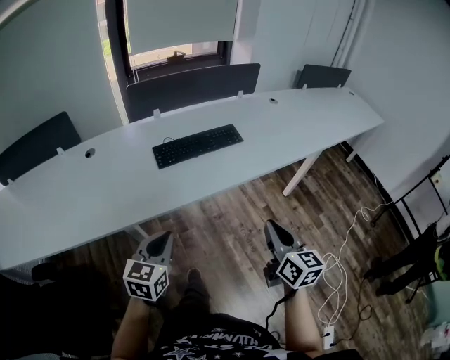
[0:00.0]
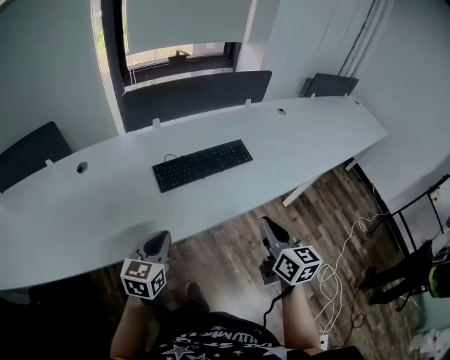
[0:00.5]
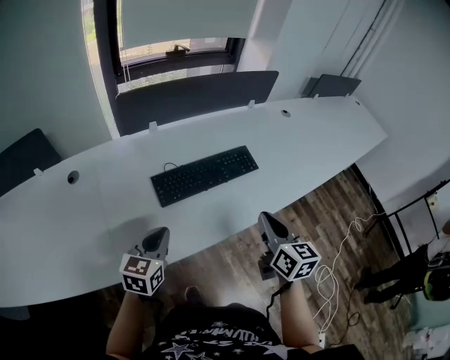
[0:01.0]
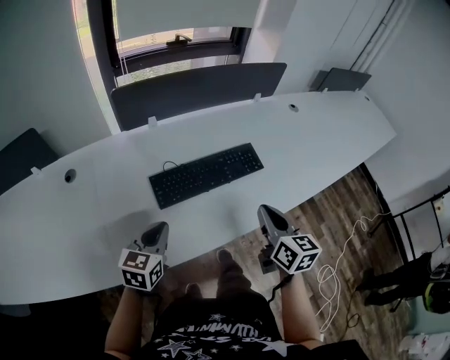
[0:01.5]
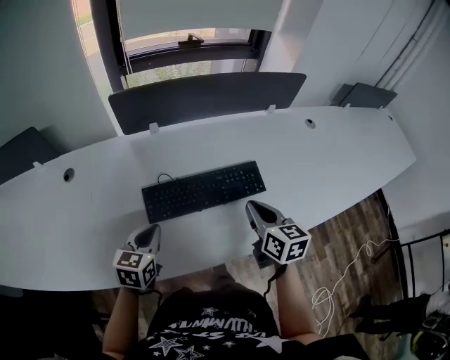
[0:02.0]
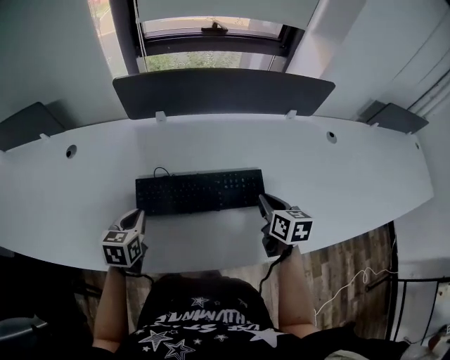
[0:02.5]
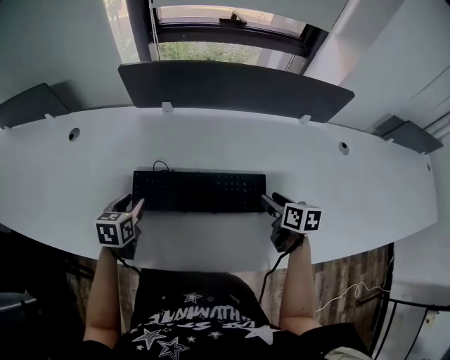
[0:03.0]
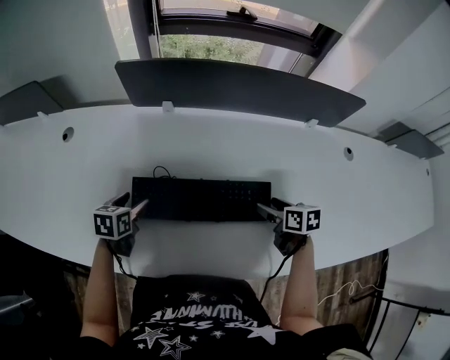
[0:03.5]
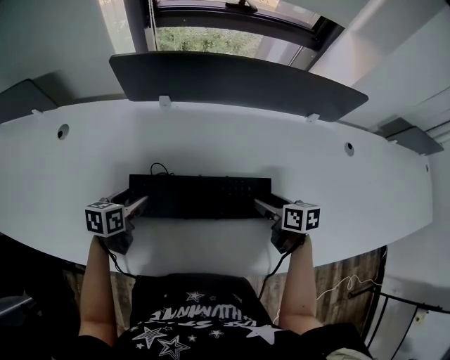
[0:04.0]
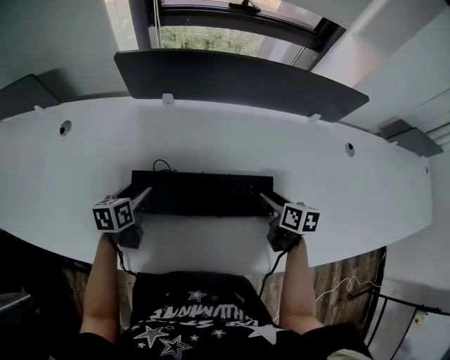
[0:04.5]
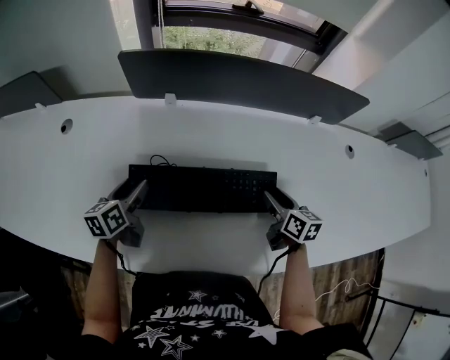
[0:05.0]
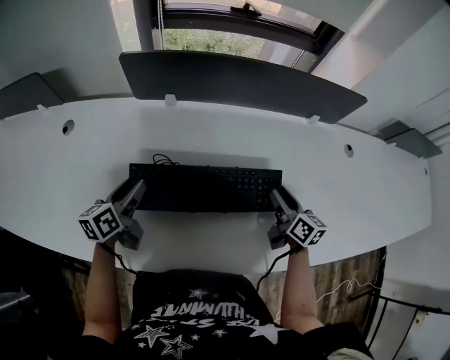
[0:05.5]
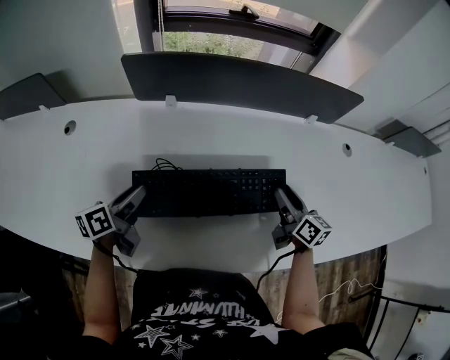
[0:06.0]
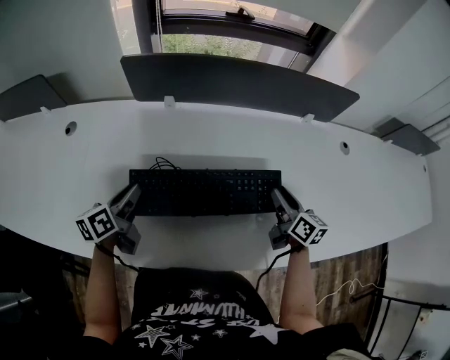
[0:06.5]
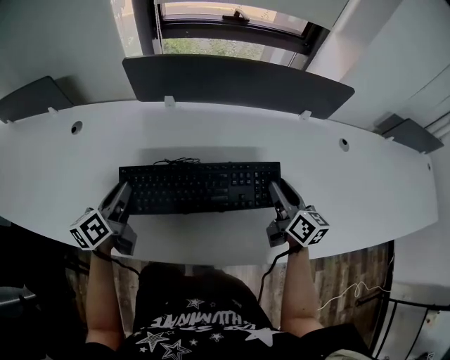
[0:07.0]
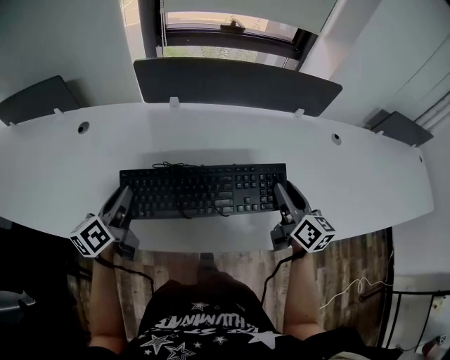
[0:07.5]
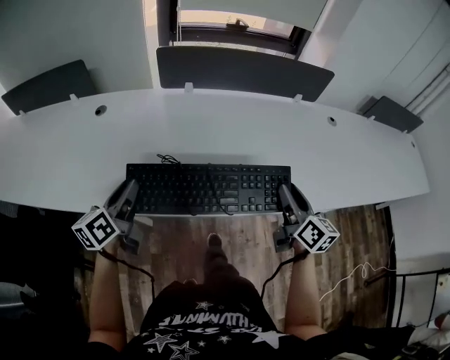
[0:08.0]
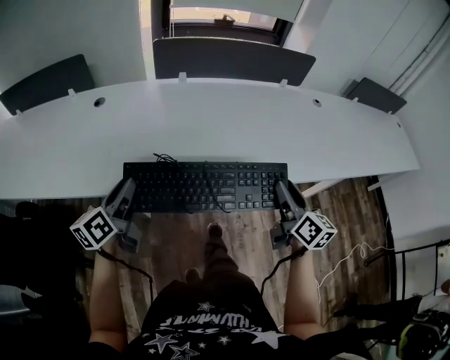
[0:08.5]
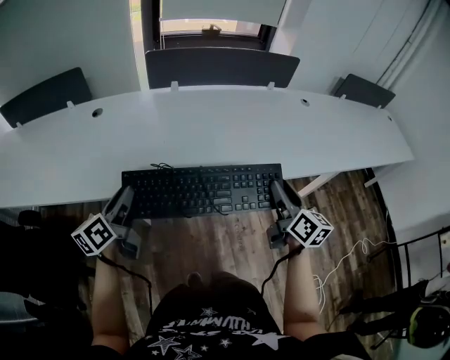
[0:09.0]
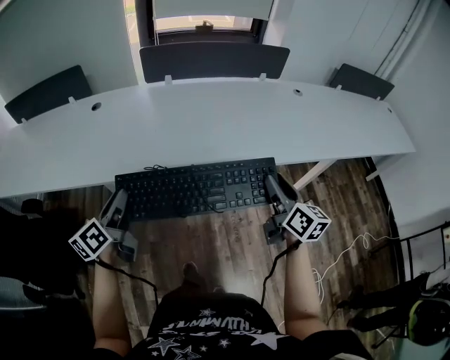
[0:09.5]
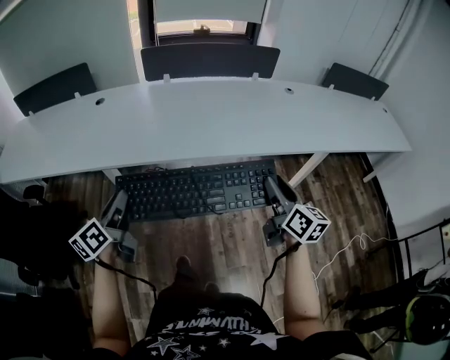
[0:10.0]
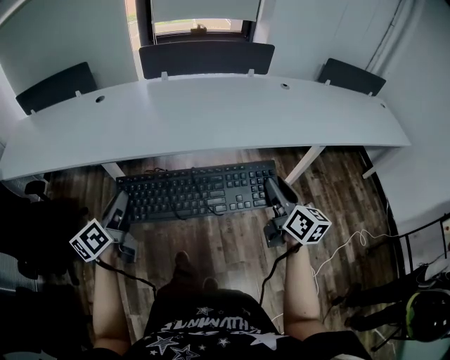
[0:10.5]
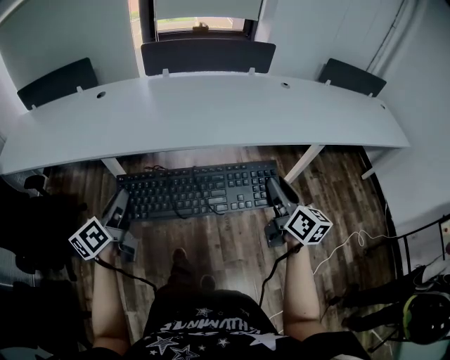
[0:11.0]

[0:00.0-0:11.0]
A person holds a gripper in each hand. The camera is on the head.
0:00.0 to 0:02.0: Both grippers move forward, roughly 35 cm. The right gripper swivels about 20 degrees.
0:02.0 to 0:03.5: The left gripper moves forward and downward, some 15 cm, changes its angle by about 30 degrees, and opens its fingers. The right gripper travels downward, forward and to the right by about 20 cm, turns by some 40 degrees, and opens up.
0:03.5 to 0:05.5: The two grippers go approximately 5 cm upward. The right gripper changes its angle by some 30 degrees, and closes its fingers, while the left gripper changes its angle by approximately 30 degrees.
0:05.5 to 0:07.5: The left gripper is displaced backward and upward by about 15 cm, and closes up. The right gripper travels upward and backward by about 15 cm.
0:07.5 to 0:09.0: The two grippers go approximately 20 cm backward.
0:09.0 to 0:11.0: Neither gripper changes place.

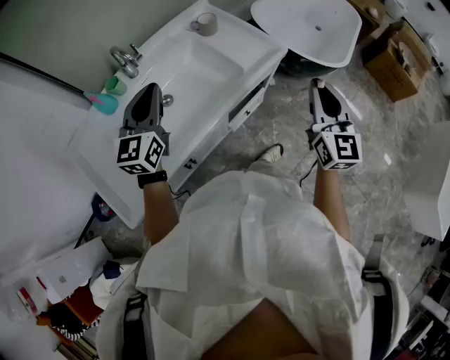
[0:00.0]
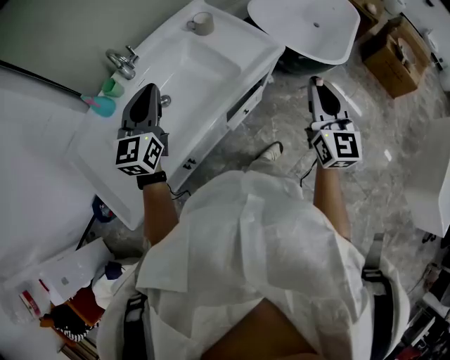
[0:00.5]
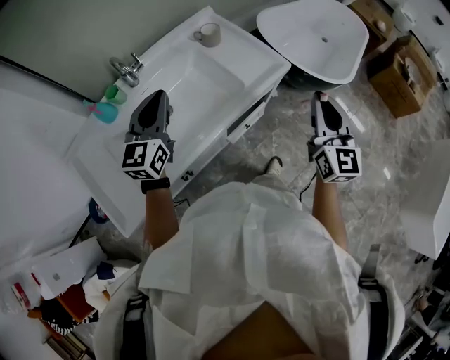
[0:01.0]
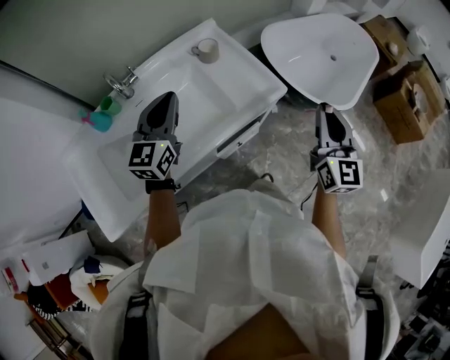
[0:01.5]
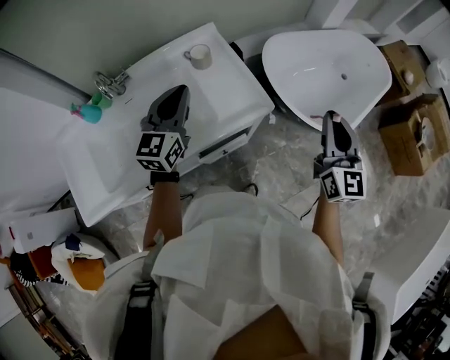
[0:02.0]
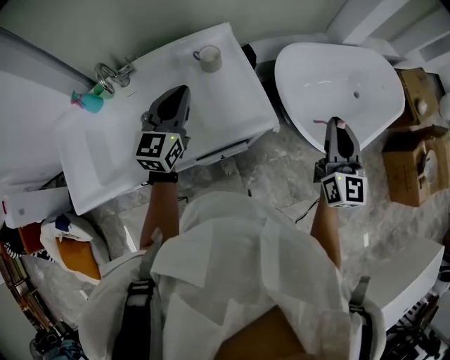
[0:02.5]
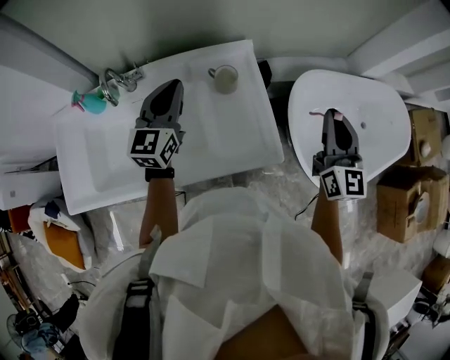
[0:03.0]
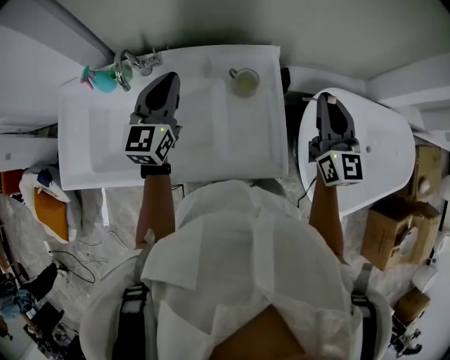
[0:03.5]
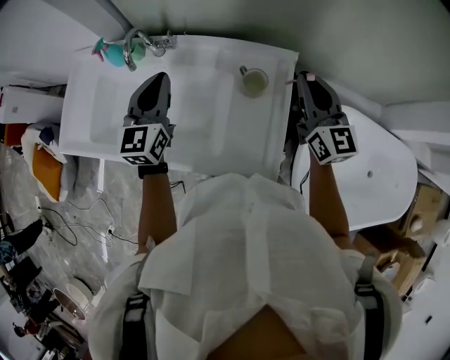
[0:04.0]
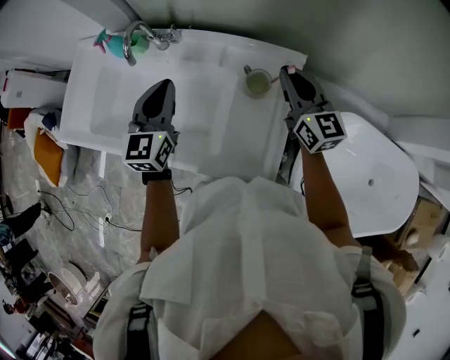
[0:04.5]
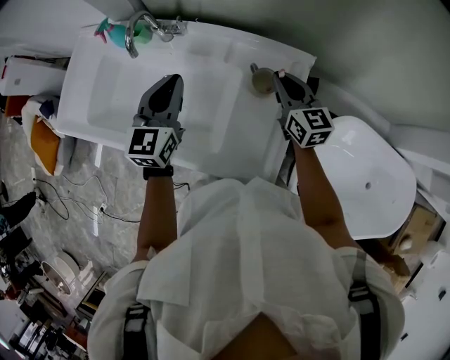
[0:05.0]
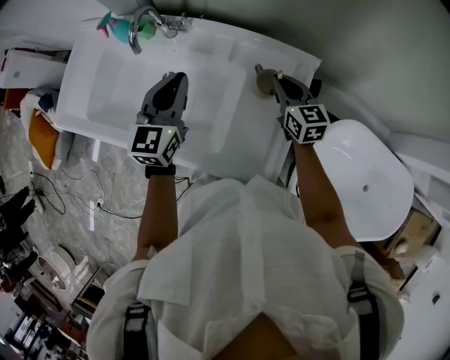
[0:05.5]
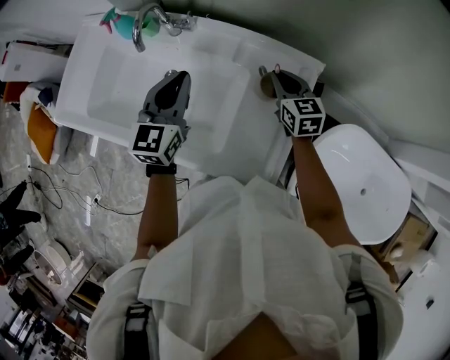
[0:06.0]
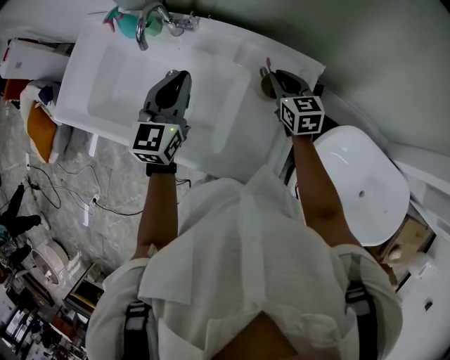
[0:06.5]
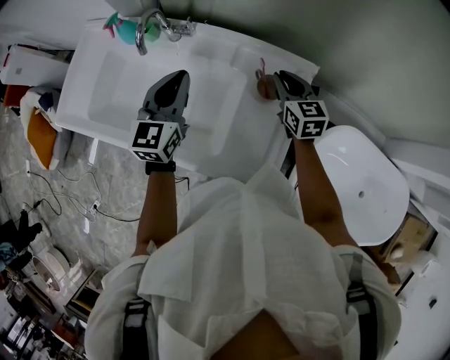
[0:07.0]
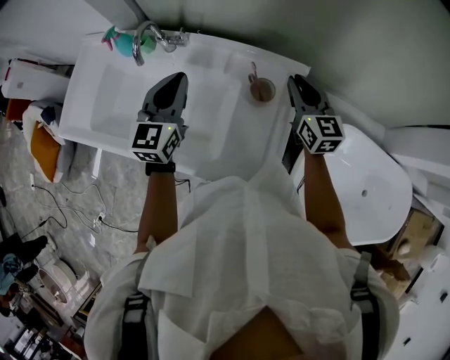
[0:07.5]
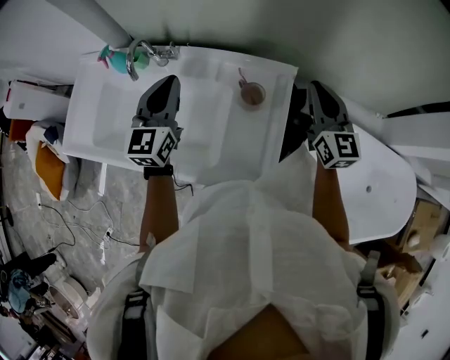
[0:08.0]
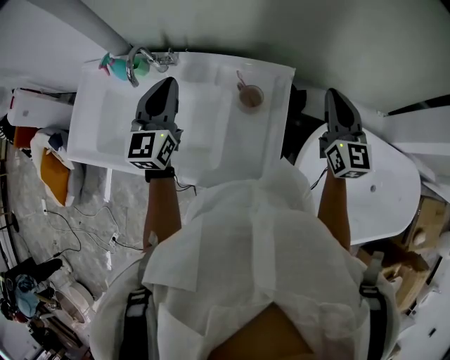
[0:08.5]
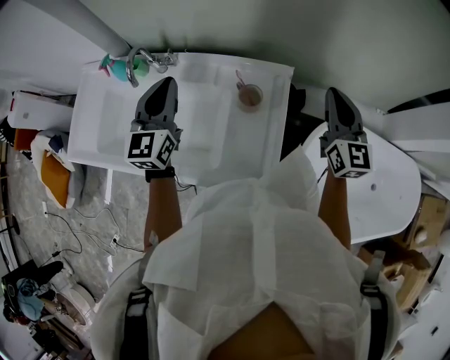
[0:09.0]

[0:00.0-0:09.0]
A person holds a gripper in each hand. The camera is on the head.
0:00.0 to 0:02.0: The right gripper heads forward and to the right, covering some 30 cm. The left gripper is displaced to the right and forward by roughly 25 cm.
0:02.0 to 0:04.5: The left gripper ends up approximately 20 cm from where it was, and rotates some 50 degrees, while the right gripper changes place by about 50 cm, and swivels some 60 degrees.
0:04.5 to 0:07.0: The right gripper travels downward by roughly 10 cm, and turns by approximately 20 degrees.
0:07.0 to 0:09.0: The left gripper moves upward, approximately 10 cm. Meanwhile the right gripper heads upward, to the right and backward, covering about 25 cm, and turns by about 30 degrees.

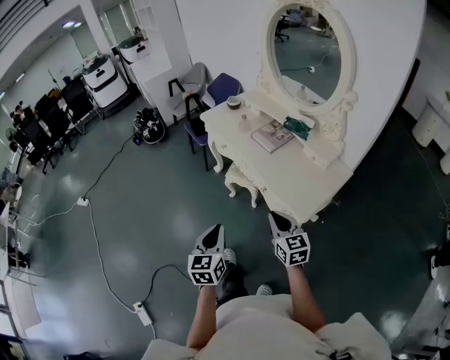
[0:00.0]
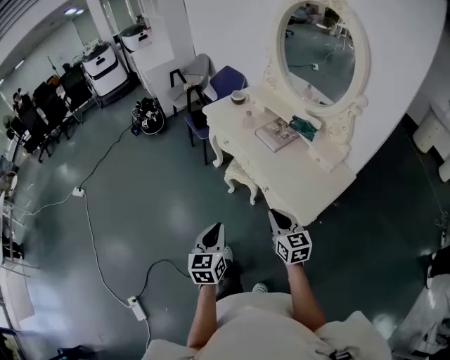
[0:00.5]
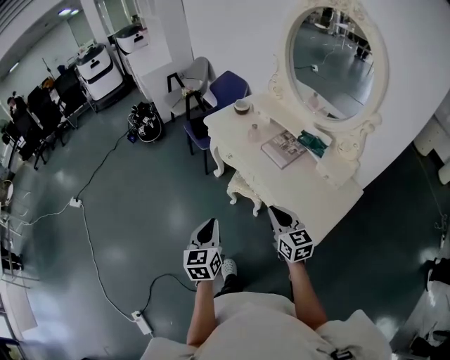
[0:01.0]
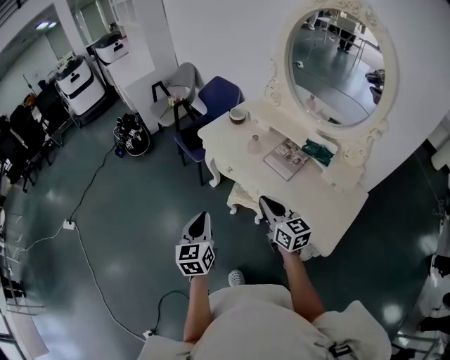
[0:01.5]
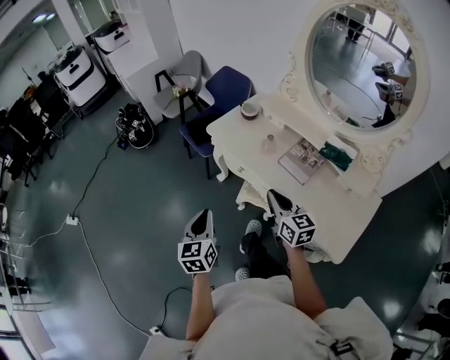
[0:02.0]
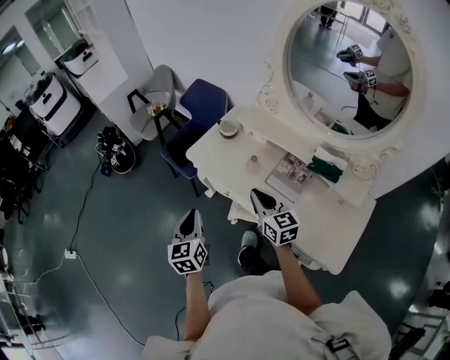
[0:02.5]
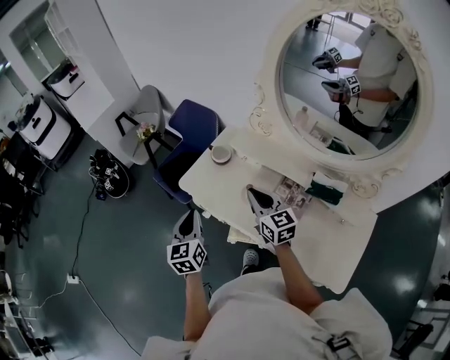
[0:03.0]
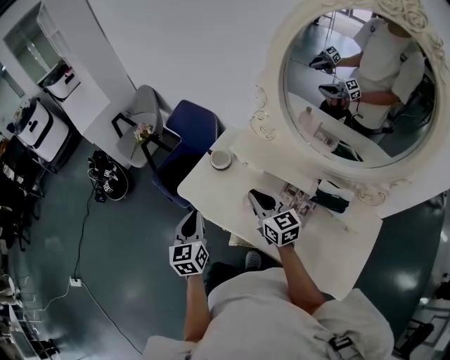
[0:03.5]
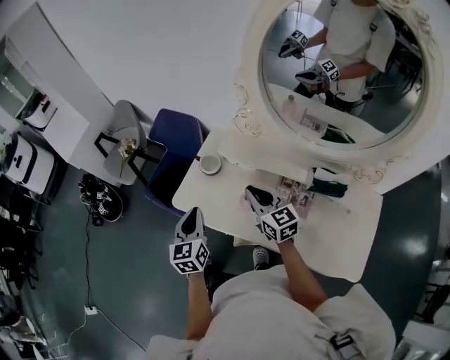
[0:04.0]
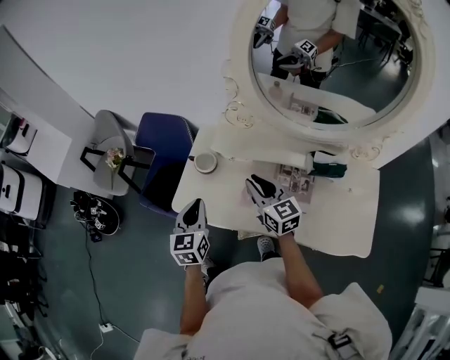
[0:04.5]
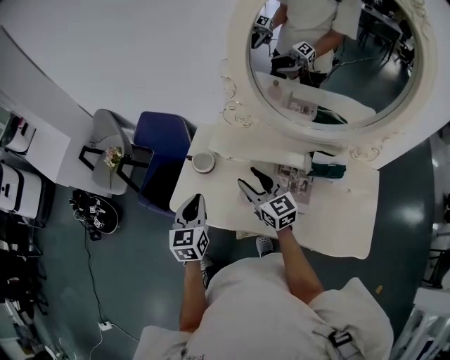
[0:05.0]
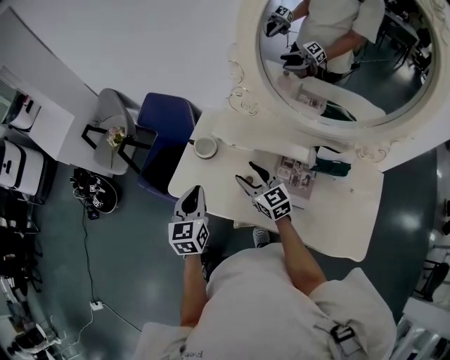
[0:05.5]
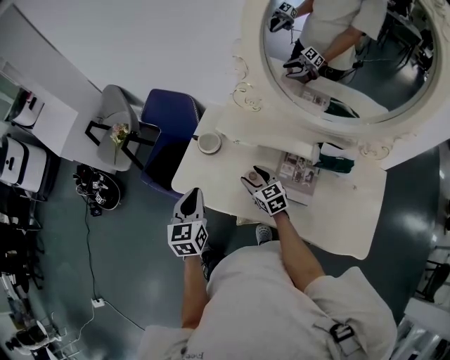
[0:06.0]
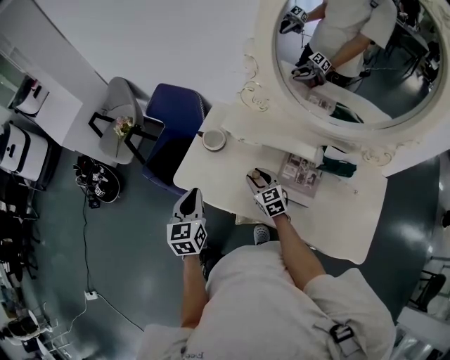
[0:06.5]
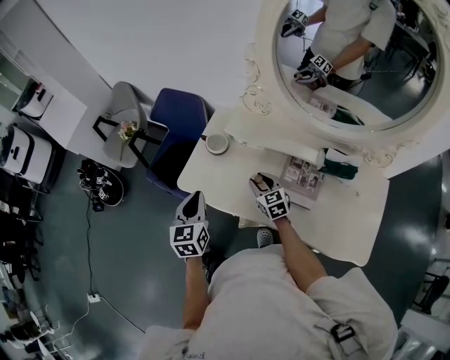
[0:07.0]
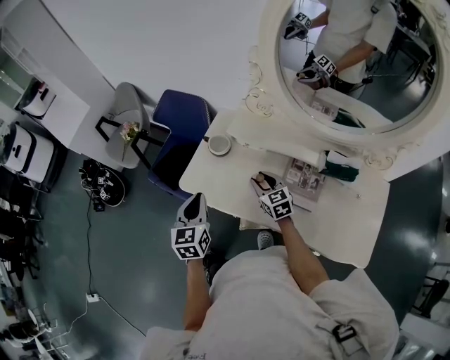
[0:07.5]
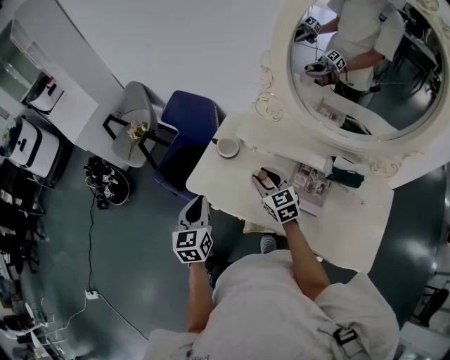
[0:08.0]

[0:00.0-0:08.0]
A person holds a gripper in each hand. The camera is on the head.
0:00.0 to 0:02.0: Both grippers travel together forward, about 35 cm.
0:02.0 to 0:04.0: Both grippers move forward, approximately 30 cm.
0:04.0 to 0:06.0: The right gripper travels downward by approximately 15 cm, and opens its fingers.
0:06.0 to 0:08.0: The right gripper shifts about 10 cm upward, and closes its fingers.
